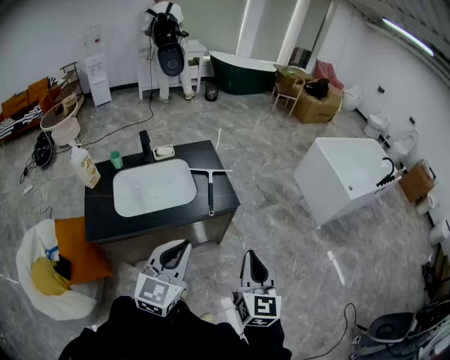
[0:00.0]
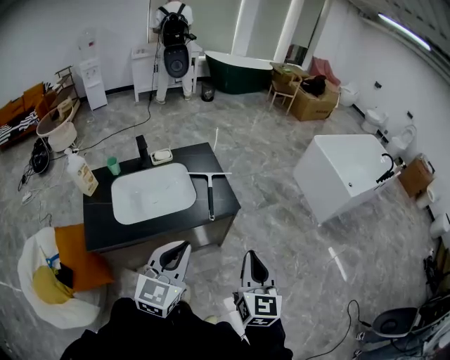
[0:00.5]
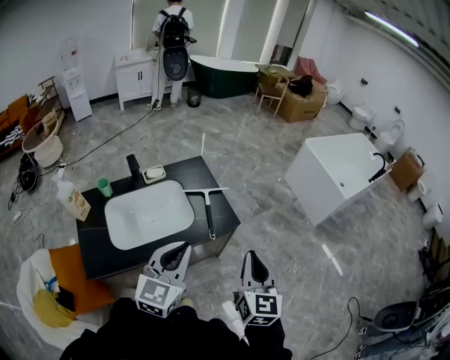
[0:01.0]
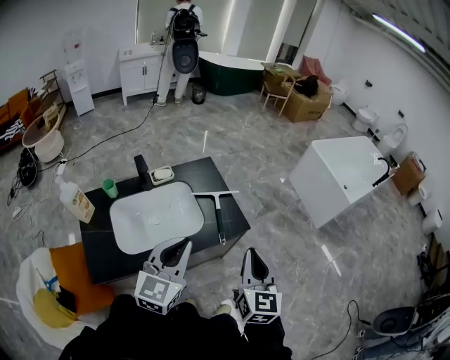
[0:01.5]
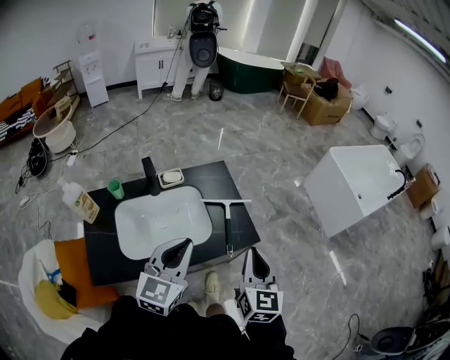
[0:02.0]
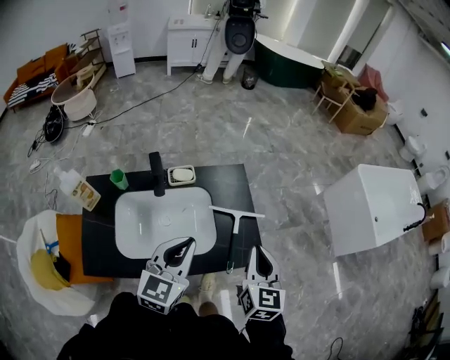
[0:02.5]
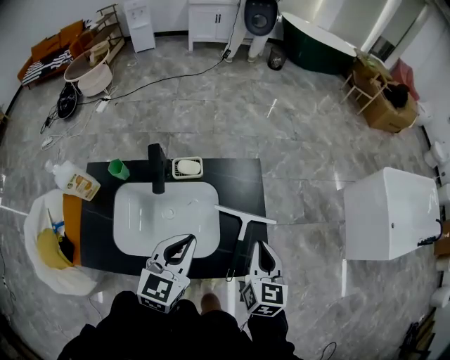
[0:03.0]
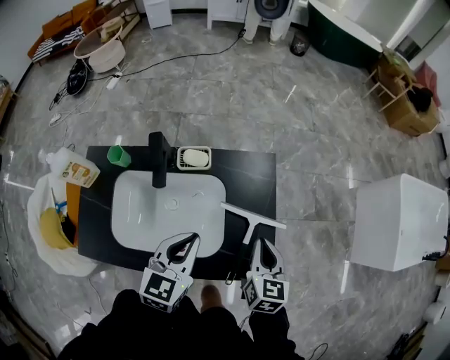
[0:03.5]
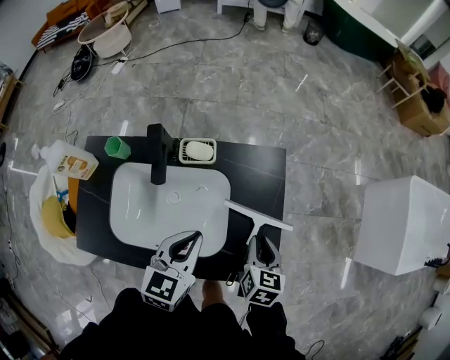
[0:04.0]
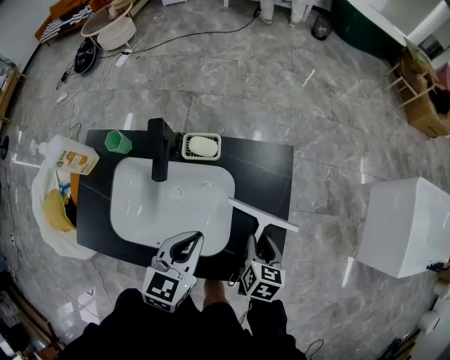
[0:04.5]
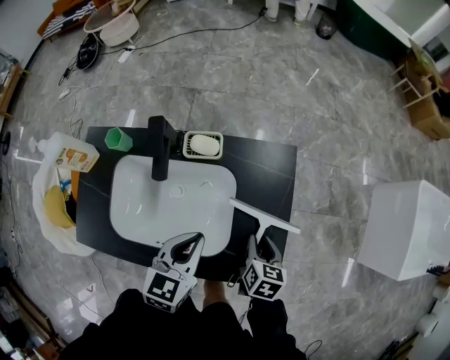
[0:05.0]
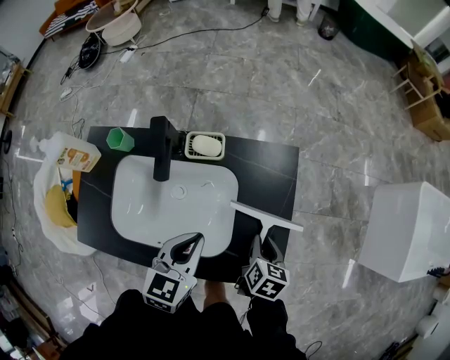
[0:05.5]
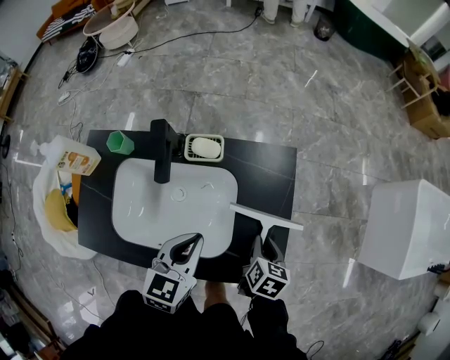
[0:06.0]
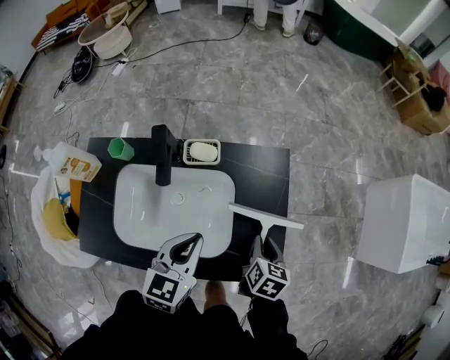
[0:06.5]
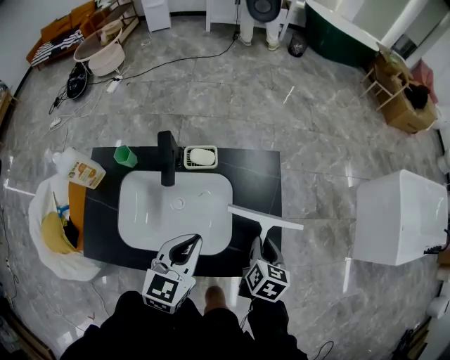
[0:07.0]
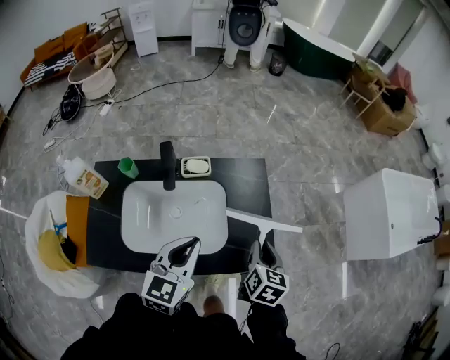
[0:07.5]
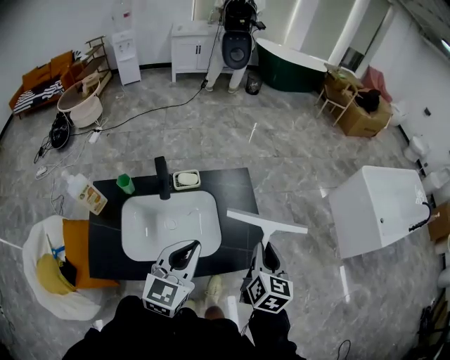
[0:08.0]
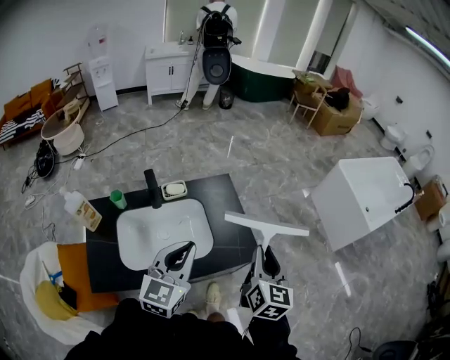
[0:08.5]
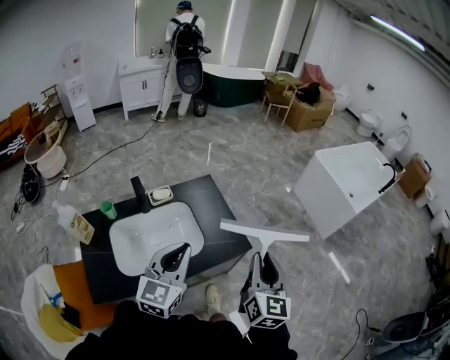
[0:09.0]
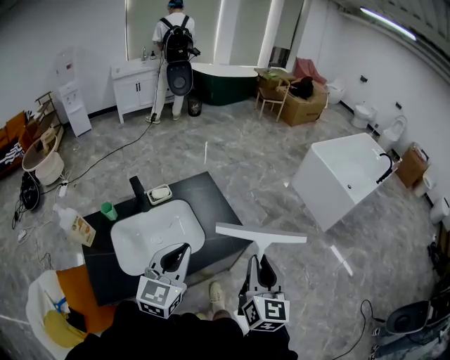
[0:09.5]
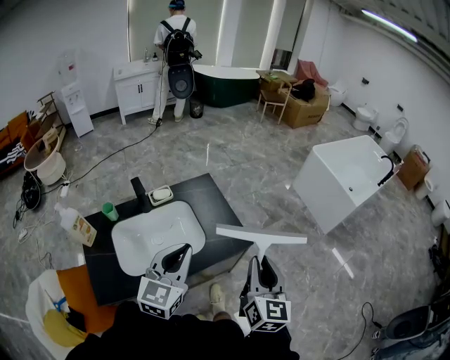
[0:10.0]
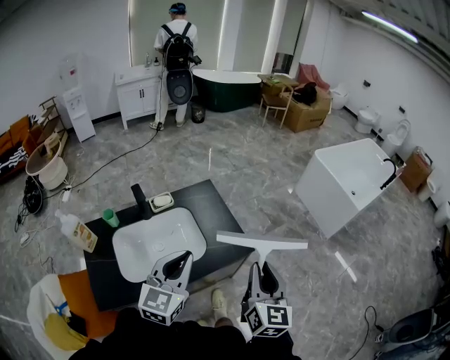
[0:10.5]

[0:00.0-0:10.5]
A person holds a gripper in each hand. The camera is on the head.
0:00.0 to 0:02.0: The two grippers go some 25 cm forward and to the left.
0:02.0 to 0:04.0: The two grippers go roughly 35 cm forward and downward. The left gripper rotates approximately 30 degrees. Meanwhile the right gripper tilts its fingers roughly 30 degrees downward.
0:04.0 to 0:06.5: The grippers stay close to where they were, moving slightly.
0:06.5 to 0:08.5: Both grippers travel together upward and backward, about 30 cm. The left gripper turns by roughly 30 degrees; the right gripper angles its fingers upward, by about 40 degrees.
0:08.5 to 0:10.5: The right gripper shifts about 10 cm backward; the left gripper moves backward, approximately 5 cm.

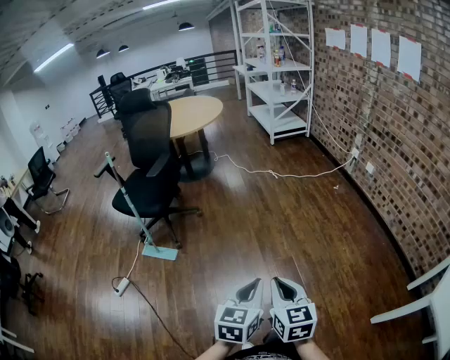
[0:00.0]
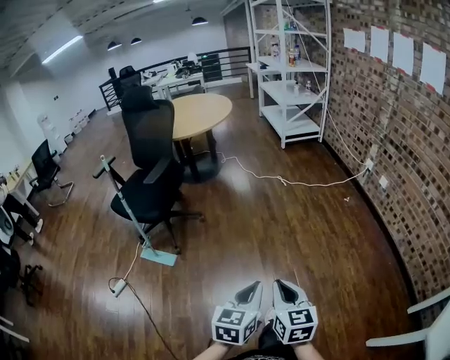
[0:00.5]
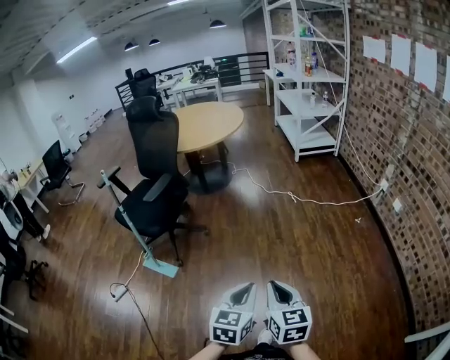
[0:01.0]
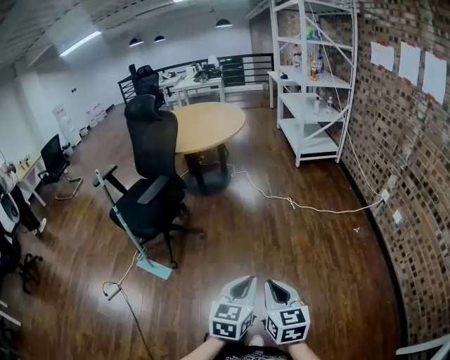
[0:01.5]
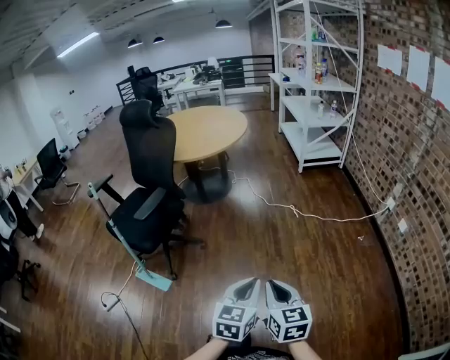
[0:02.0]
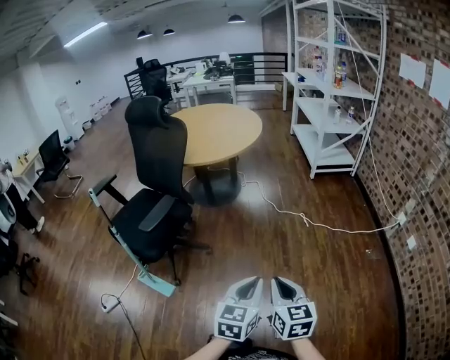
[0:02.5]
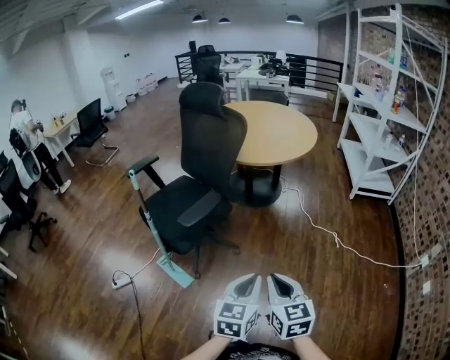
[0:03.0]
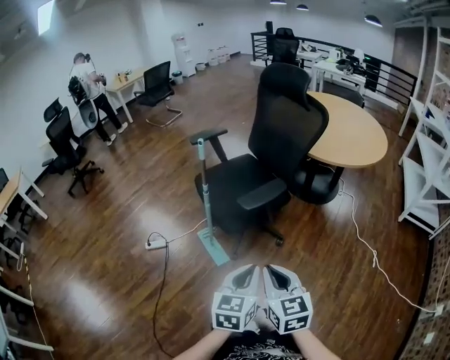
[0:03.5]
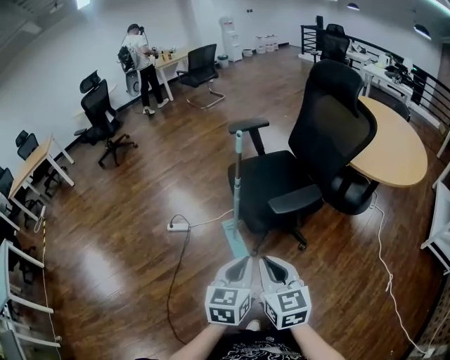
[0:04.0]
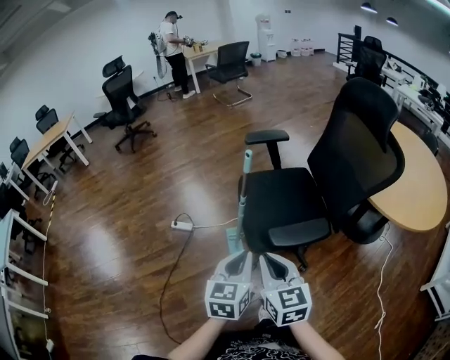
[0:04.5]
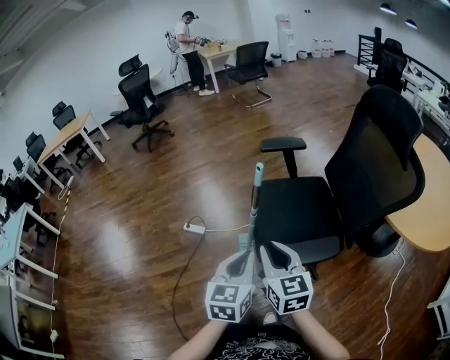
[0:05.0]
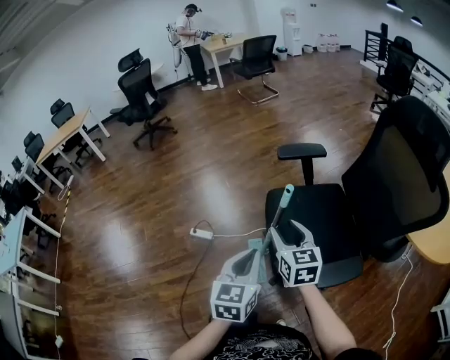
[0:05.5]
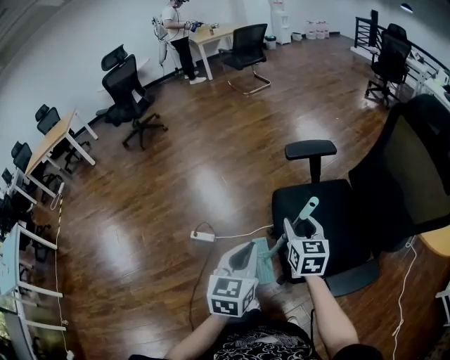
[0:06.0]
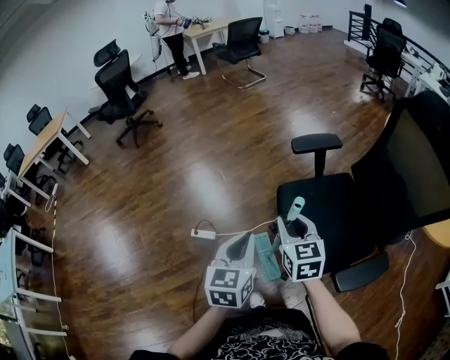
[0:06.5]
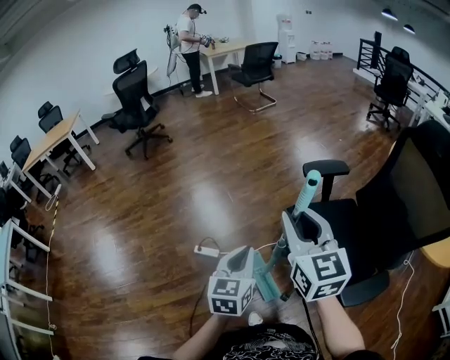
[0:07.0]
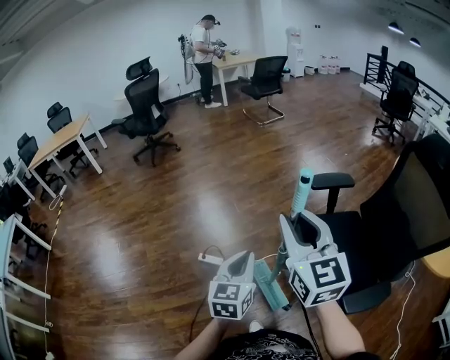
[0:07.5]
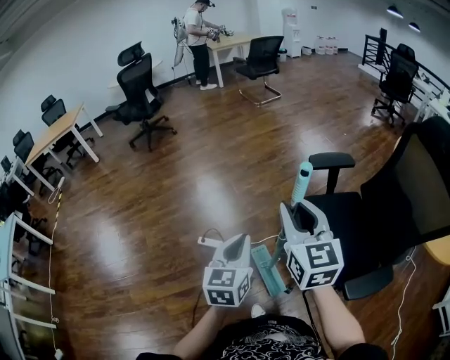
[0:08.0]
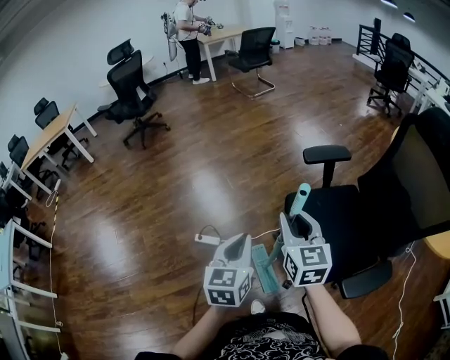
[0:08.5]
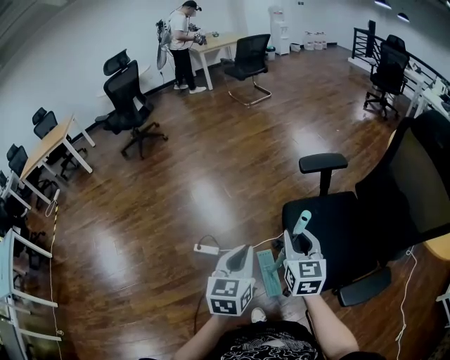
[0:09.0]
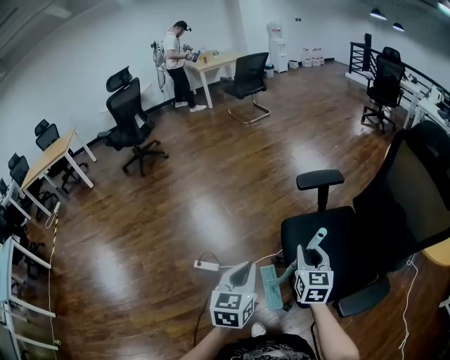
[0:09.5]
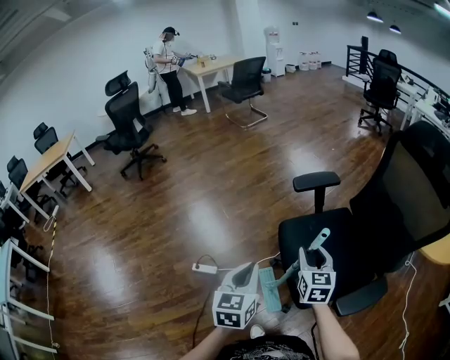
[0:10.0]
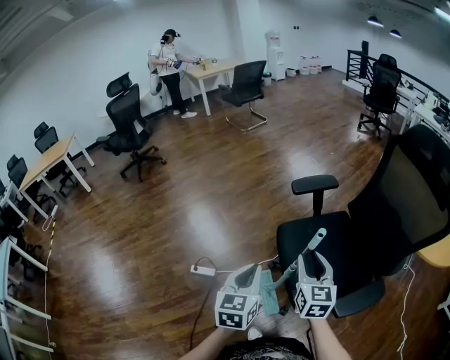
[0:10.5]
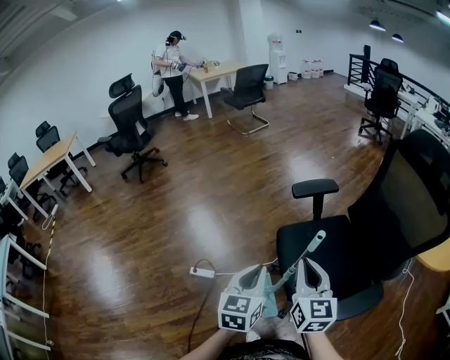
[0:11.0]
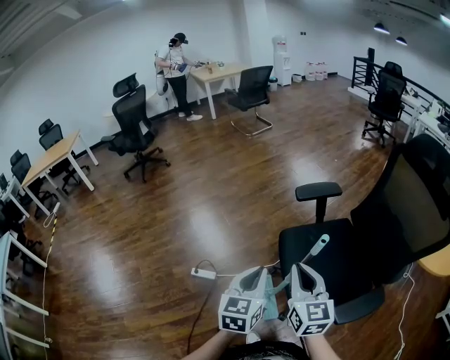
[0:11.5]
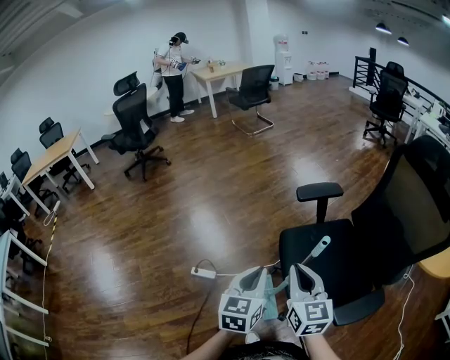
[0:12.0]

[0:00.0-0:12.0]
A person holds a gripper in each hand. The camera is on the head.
0:00.0 to 0:02.0: The grippers both shift forward by about 40 cm.
0:02.0 to 0:04.0: The pair of grippers is taken some 50 cm. The left gripper changes its angle by approximately 60 degrees. The right gripper changes its angle by roughly 60 degrees.
0:04.0 to 0:06.0: Both grippers move forward, about 40 cm. The right gripper opens up.
0:06.0 to 0:08.0: The left gripper travels to the left by roughly 10 cm. Meanwhile the right gripper goes roughly 20 cm upward and to the left, swivels approximately 20 degrees, and closes up.
0:08.0 to 0:10.0: The left gripper shifts about 5 cm to the right; the right gripper moves downward and to the right, some 25 cm, and turns by roughly 20 degrees.
0:10.0 to 0:12.0: The right gripper heads upward, backward and to the left, covering roughly 15 cm, and closes up.

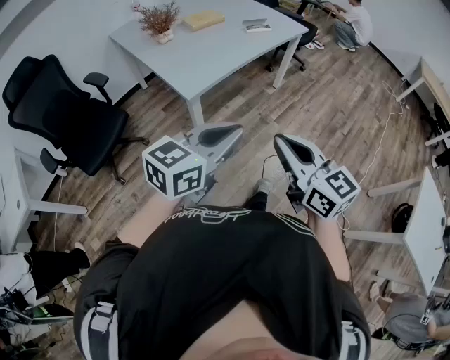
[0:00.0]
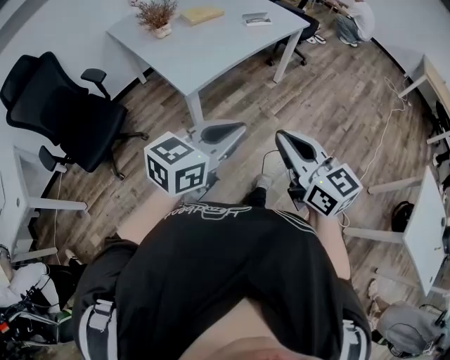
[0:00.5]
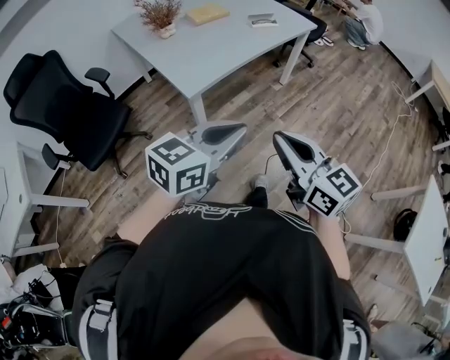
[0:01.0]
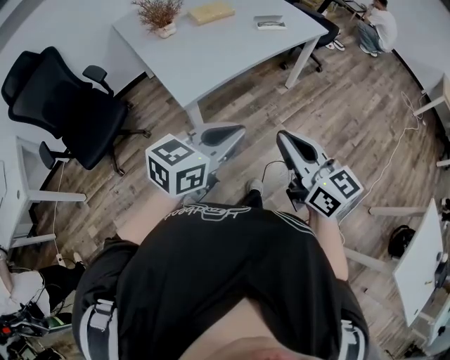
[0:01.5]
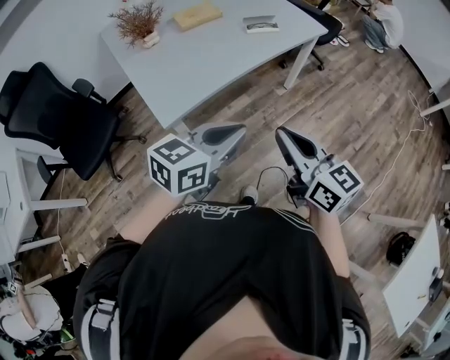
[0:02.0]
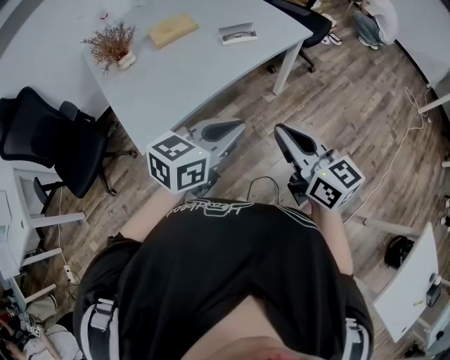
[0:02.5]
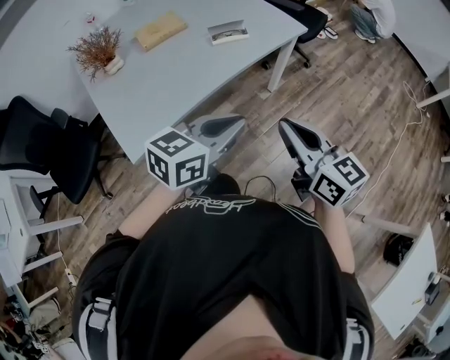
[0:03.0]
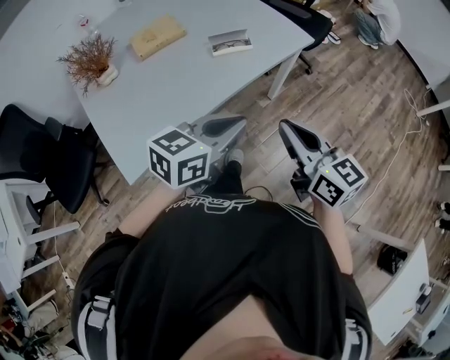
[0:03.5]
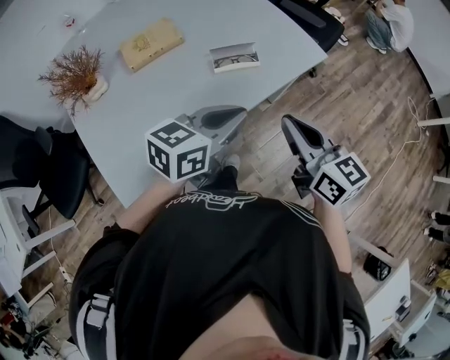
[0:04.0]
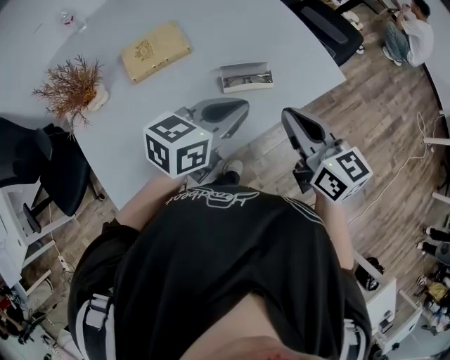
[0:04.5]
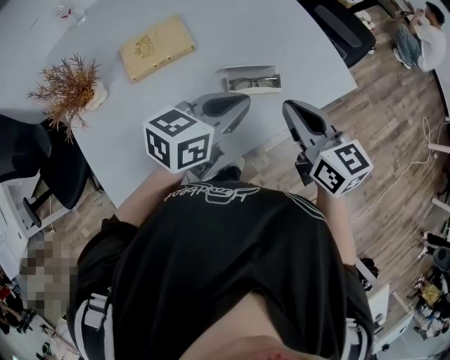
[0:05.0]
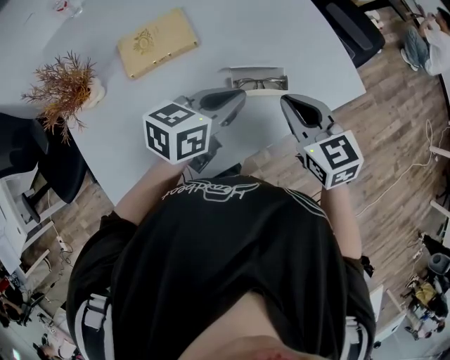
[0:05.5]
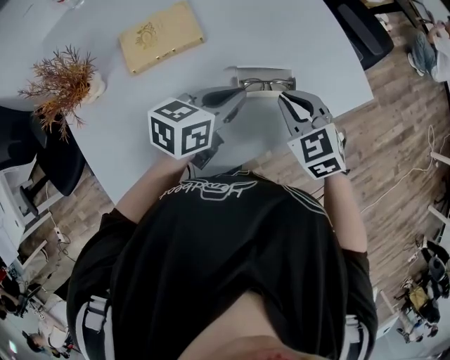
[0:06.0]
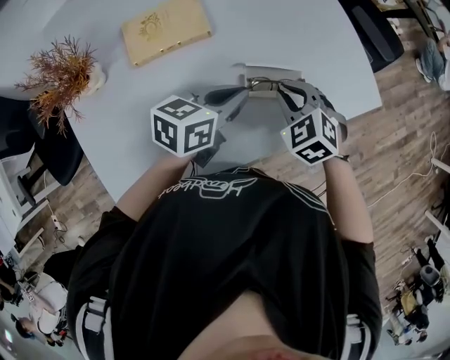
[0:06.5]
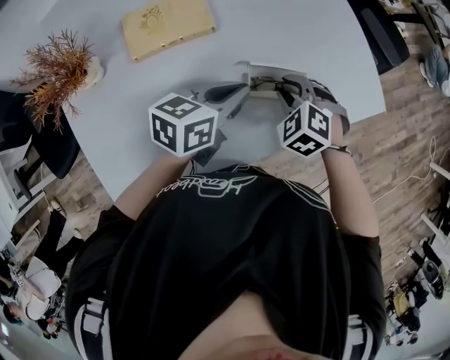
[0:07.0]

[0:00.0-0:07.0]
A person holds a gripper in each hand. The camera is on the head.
0:00.0 to 0:02.0: Both grippers move forward, approximately 25 cm.
0:02.0 to 0:03.5: Both grippers travel together forward, approximately 25 cm.
0:03.5 to 0:05.0: The grippers both shift forward by some 30 cm.
0:05.0 to 0:07.0: The left gripper heads downward, forward and to the left, covering about 15 cm. The right gripper shifts approximately 20 cm downward and forward, and angles its fingers downward, by some 40 degrees.
